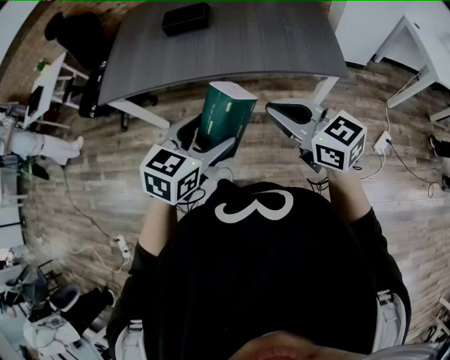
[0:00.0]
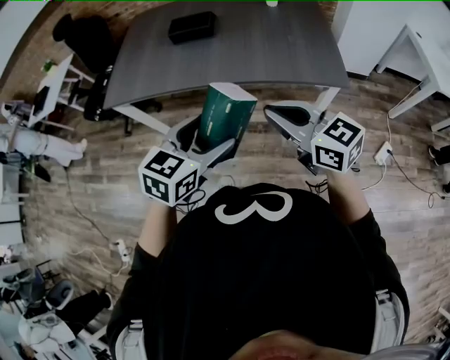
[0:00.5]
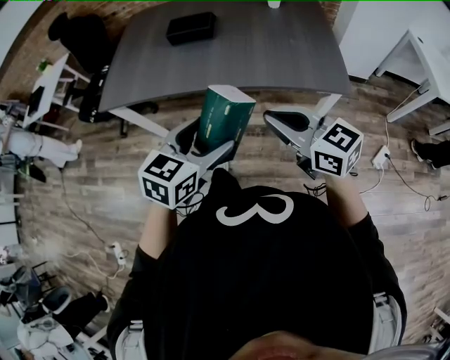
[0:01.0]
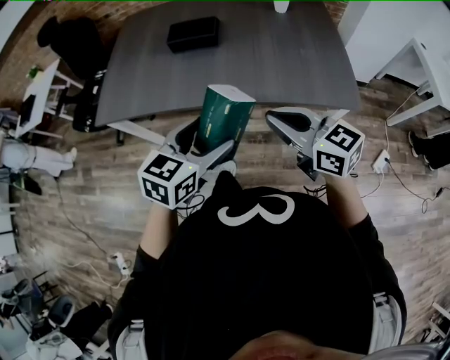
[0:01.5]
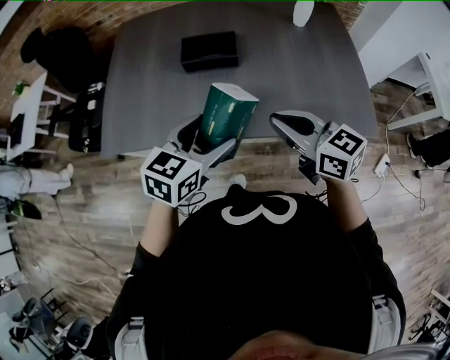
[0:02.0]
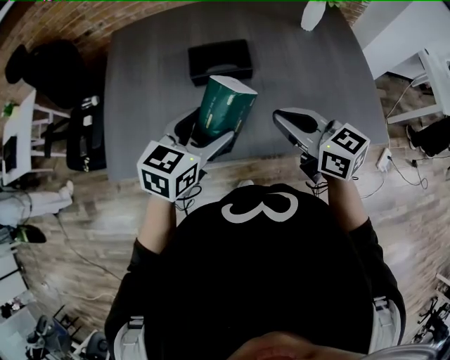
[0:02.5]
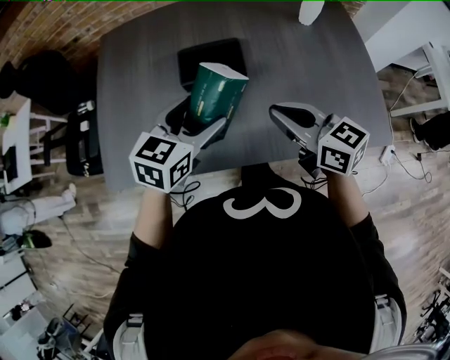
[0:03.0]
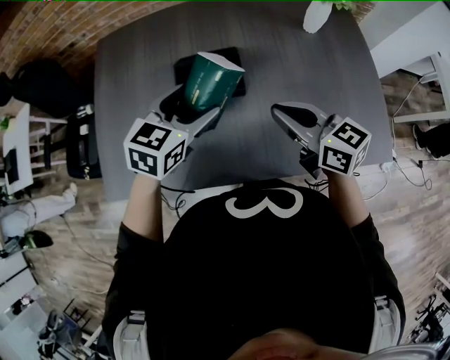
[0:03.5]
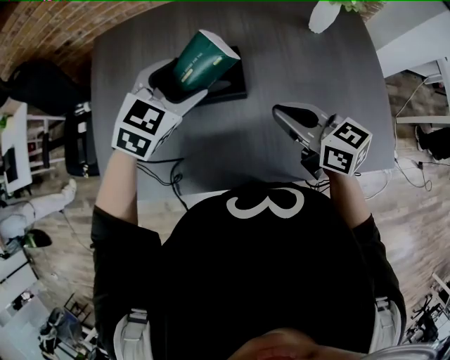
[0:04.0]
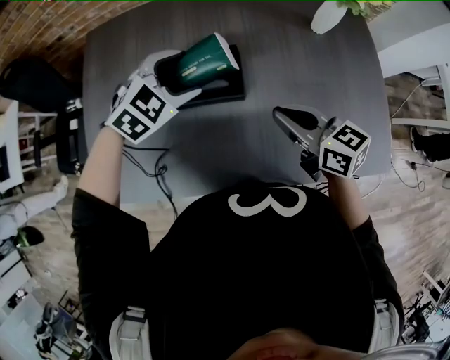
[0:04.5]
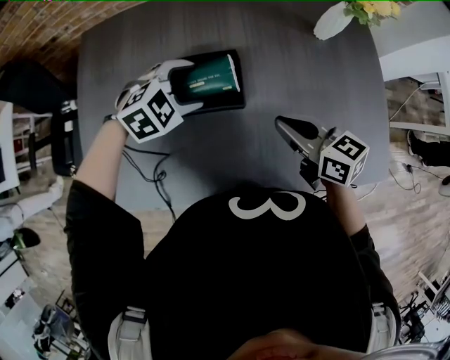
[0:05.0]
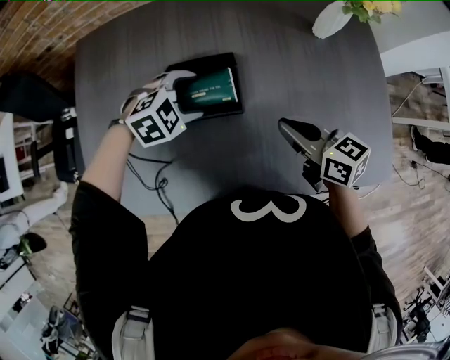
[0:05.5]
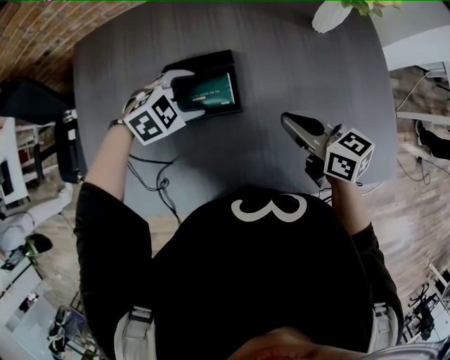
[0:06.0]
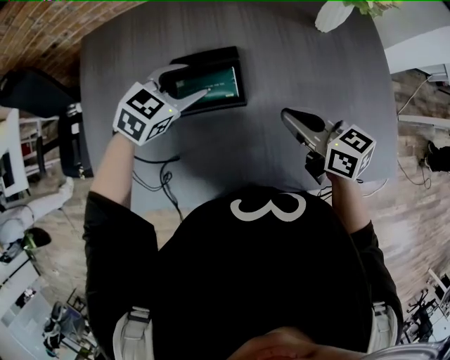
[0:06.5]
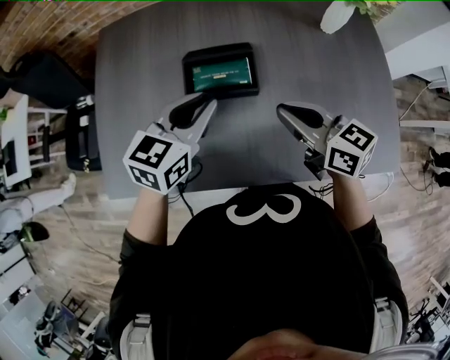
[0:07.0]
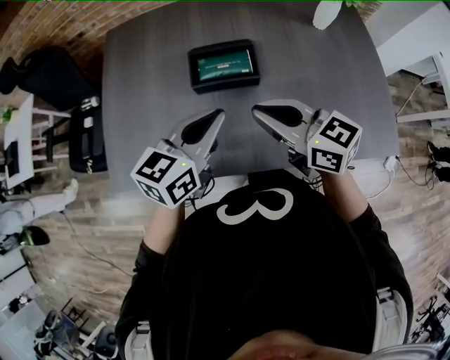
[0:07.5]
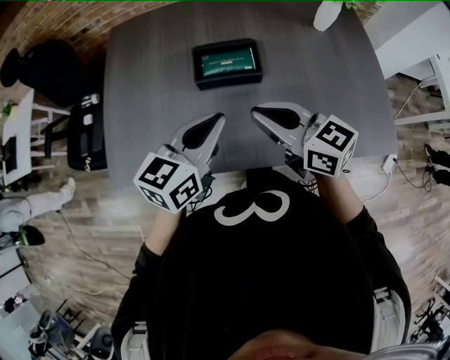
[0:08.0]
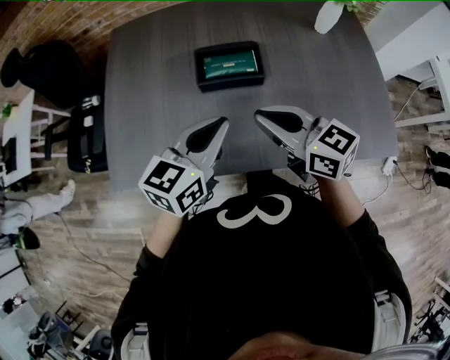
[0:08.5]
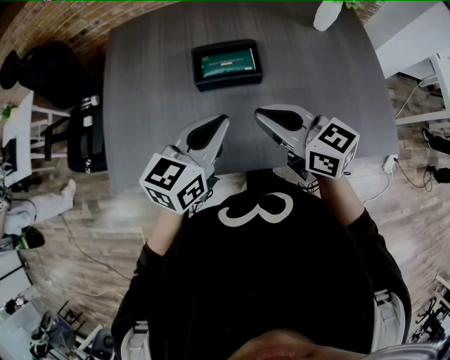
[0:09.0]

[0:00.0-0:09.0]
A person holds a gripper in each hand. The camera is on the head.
0:00.0 to 0:02.0: The two grippers go roughly 30 cm forward.
0:02.0 to 0:04.5: The right gripper travels forward by approximately 25 cm. The left gripper shifts some 35 cm forward, and rotates around the line of its fingers by about 40 degrees, clockwise from behind.
0:04.5 to 0:07.0: The left gripper travels backward by approximately 10 cm, goes downward and returns, approximately 10 cm each way, twists some 40 degrees counterclockwise, seen from behind, and closes up.
0:07.0 to 0:09.0: The left gripper travels backward by roughly 10 cm, while the right gripper shifts some 10 cm to the left and backward.

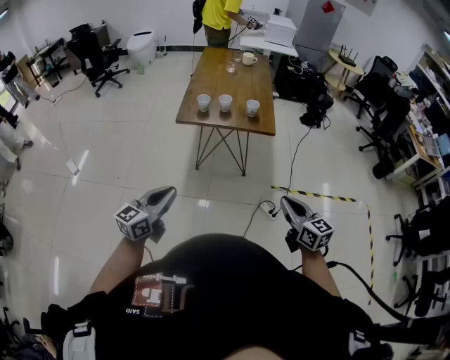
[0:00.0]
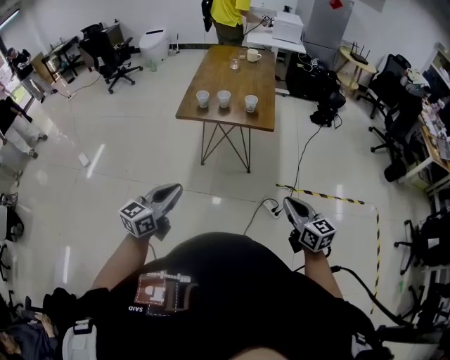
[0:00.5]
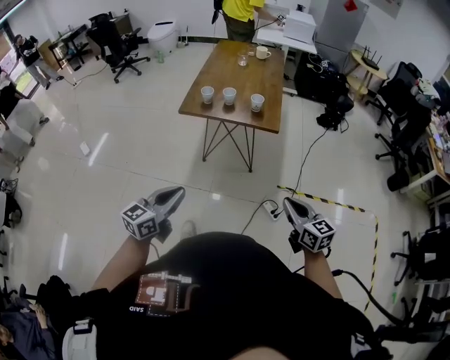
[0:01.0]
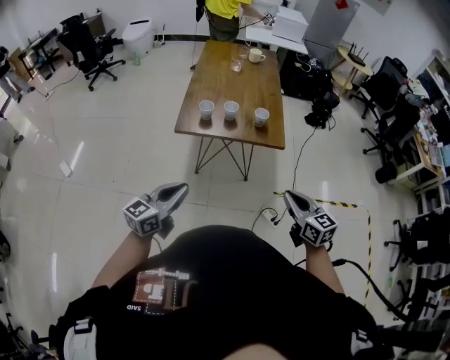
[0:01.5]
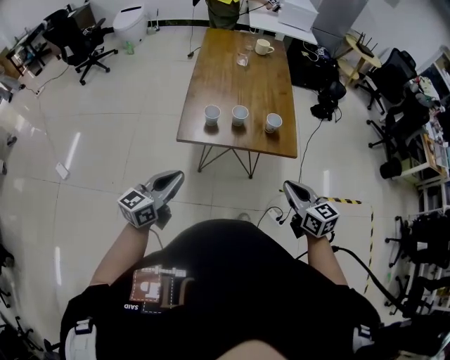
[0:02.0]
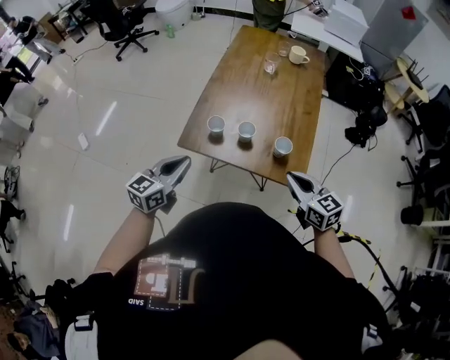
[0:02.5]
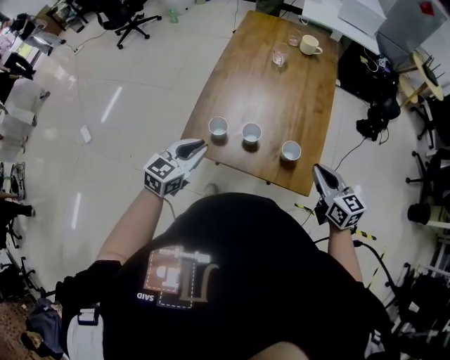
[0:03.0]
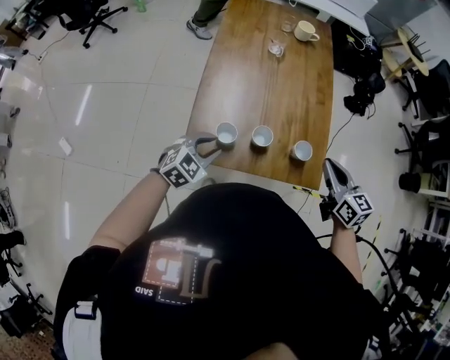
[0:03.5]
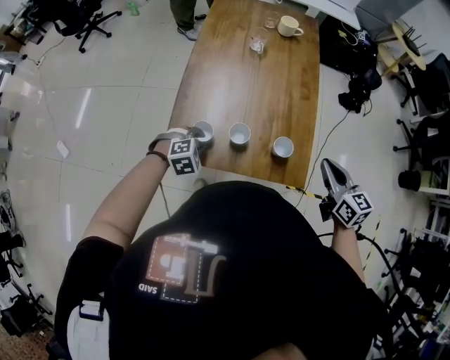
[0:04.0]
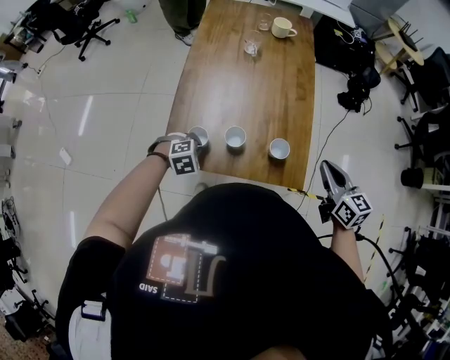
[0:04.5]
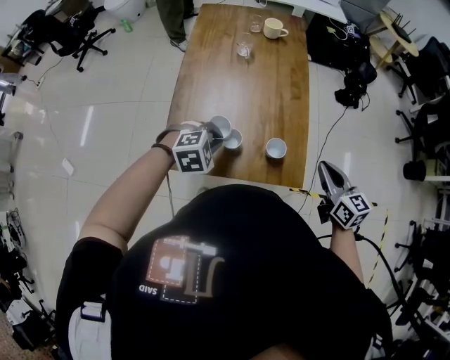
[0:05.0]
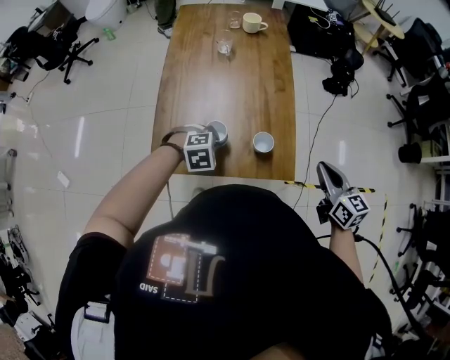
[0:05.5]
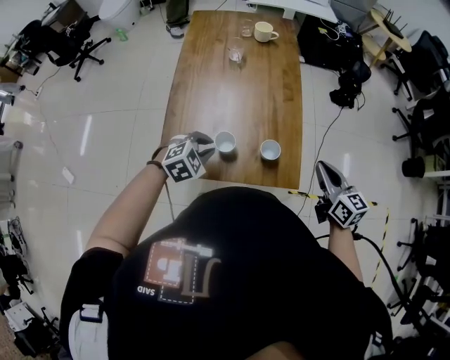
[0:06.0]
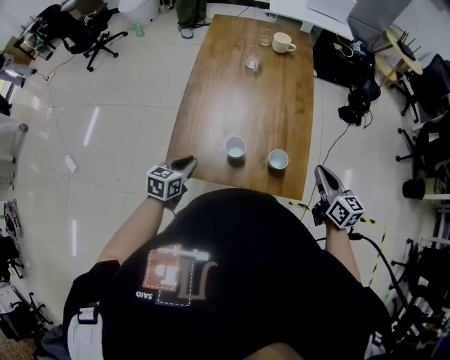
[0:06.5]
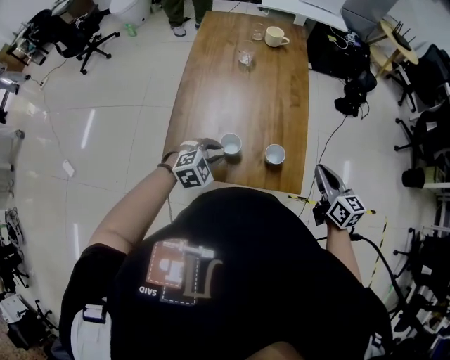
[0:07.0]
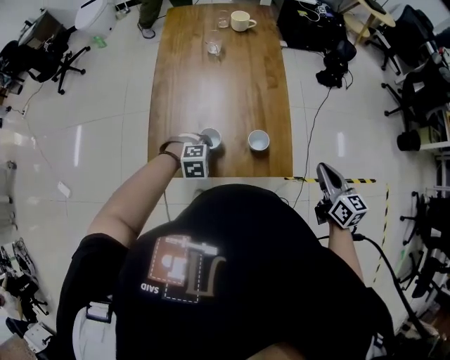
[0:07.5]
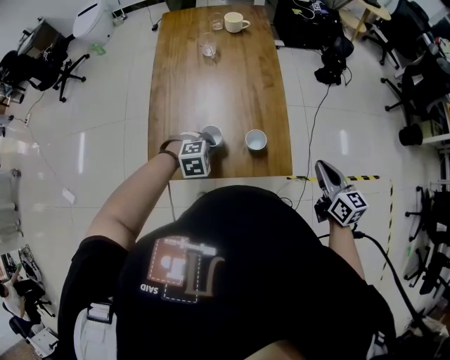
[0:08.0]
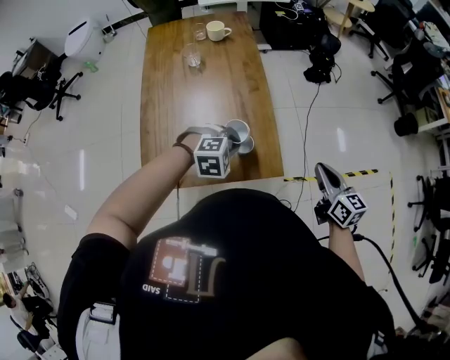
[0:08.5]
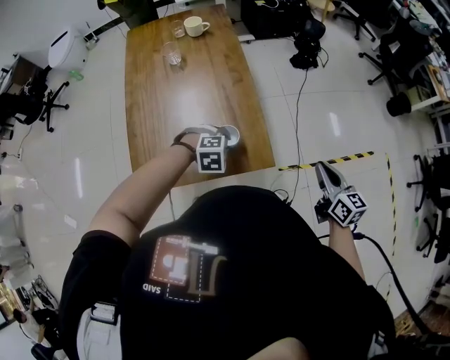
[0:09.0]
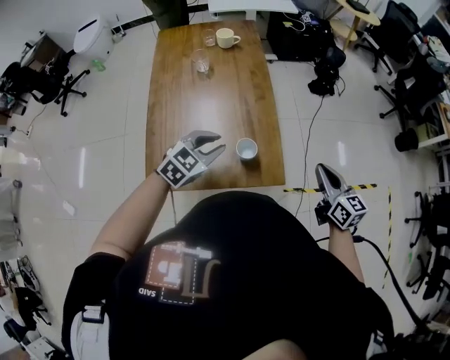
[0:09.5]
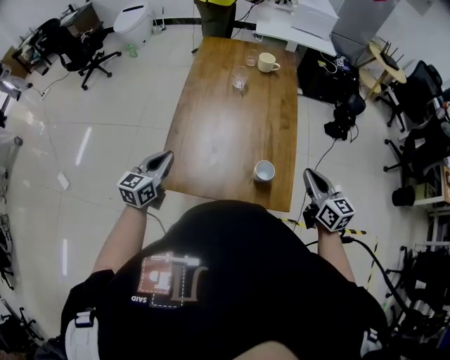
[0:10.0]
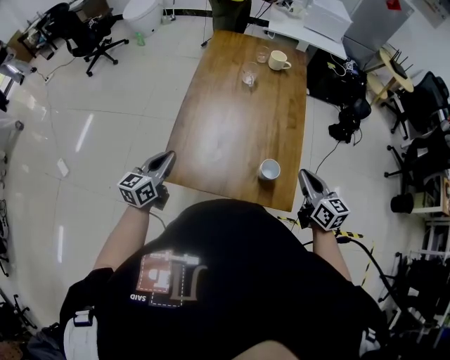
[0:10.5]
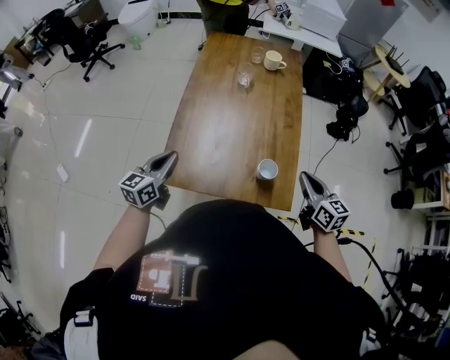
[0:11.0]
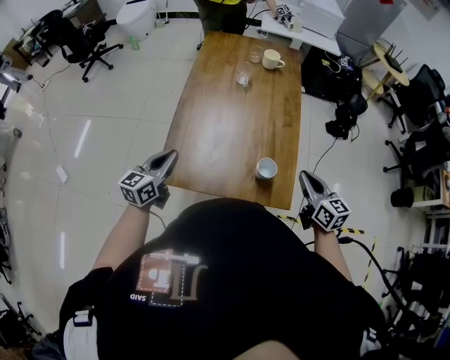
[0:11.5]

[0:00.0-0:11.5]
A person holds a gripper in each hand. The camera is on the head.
0:00.0 to 0:02.0: The grippers both shift forward by roughly 30 cm.
0:02.0 to 0:04.0: The left gripper shifts approximately 35 cm forward and downward, tips its fingers downward by roughly 60 degrees, and opens its fingers. Meanwhile the right gripper shifts approximately 30 cm forward and to the right.
0:04.0 to 0:06.0: The left gripper goes up and down, about 10 cm each way, reversing 2 times.
0:06.0 to 0:07.5: The right gripper shifts by some 5 cm. The left gripper is displaced downward by some 10 cm, reaches about 10 cm to the left, then returns, and swivels approximately 30 degrees.
0:07.5 to 0:09.5: The right gripper reaches some 10 cm to the right, then returns; the left gripper moves up and down over some 20 cm, changing direction 2 times, and tips its fingers upward by some 40 degrees.
0:09.5 to 0:11.5: The right gripper shifts by approximately 15 cm; the left gripper changes place by approximately 25 cm, swivels some 60 degrees, and closes its fingers.

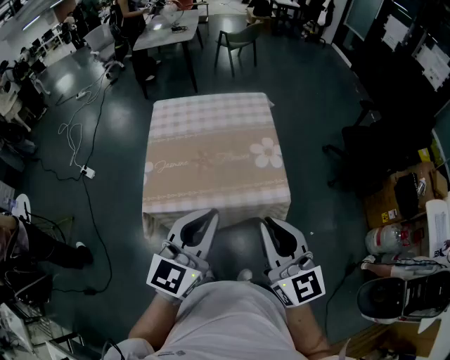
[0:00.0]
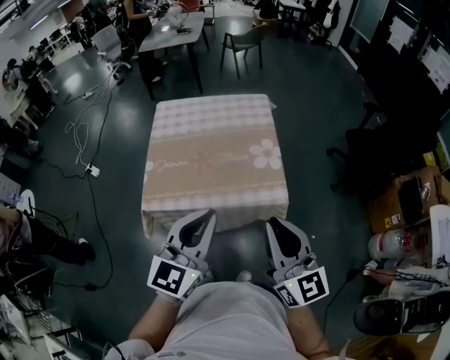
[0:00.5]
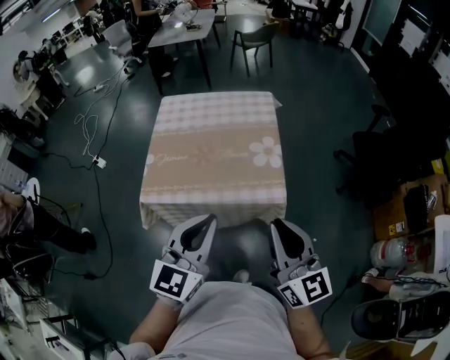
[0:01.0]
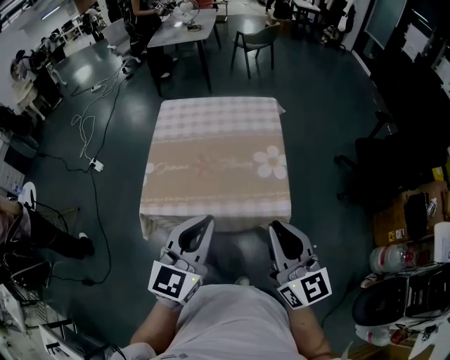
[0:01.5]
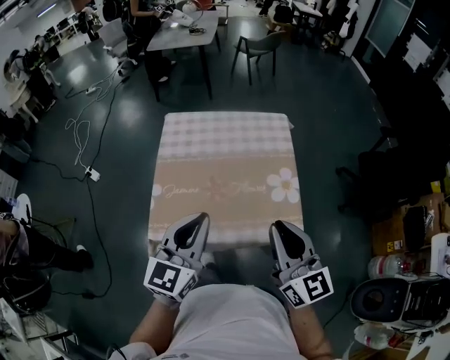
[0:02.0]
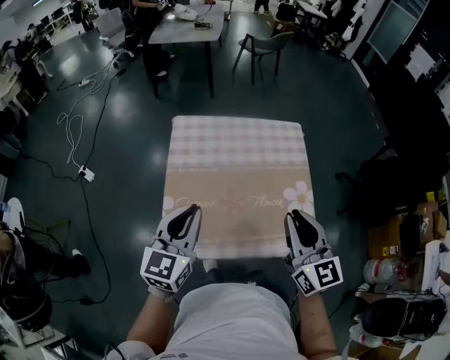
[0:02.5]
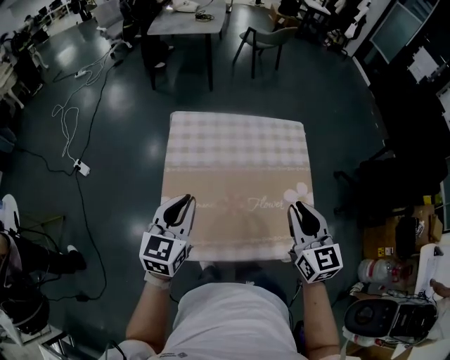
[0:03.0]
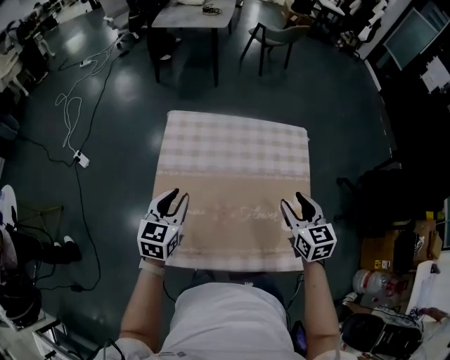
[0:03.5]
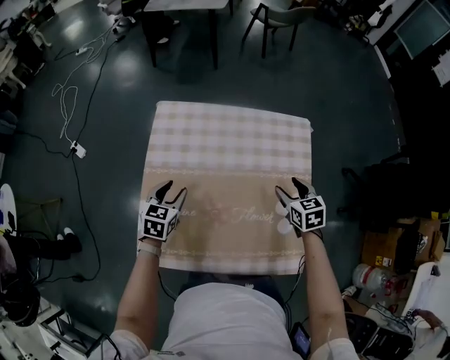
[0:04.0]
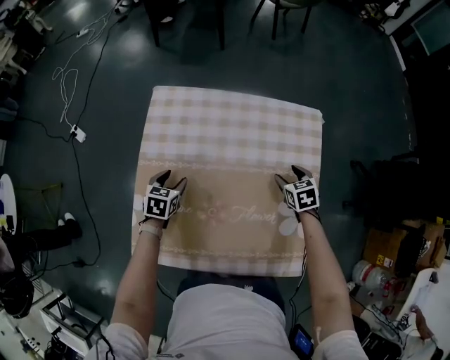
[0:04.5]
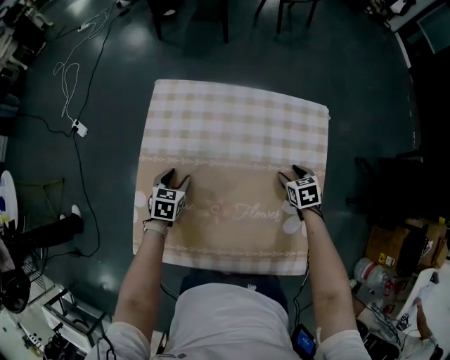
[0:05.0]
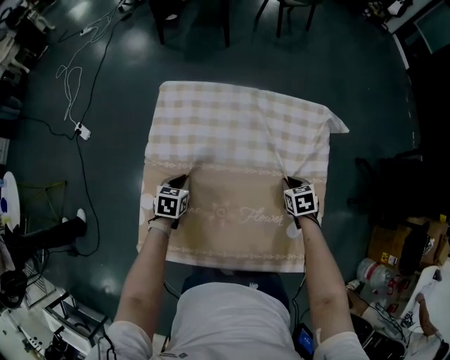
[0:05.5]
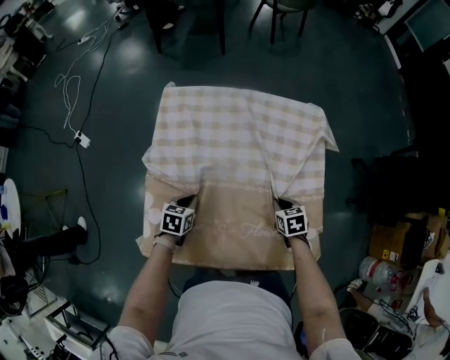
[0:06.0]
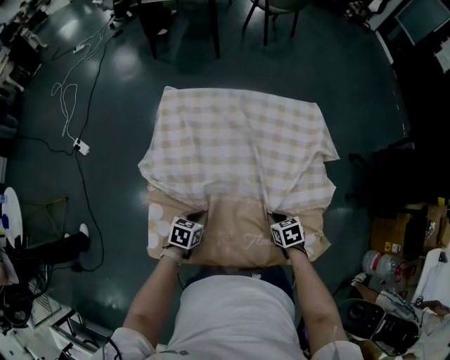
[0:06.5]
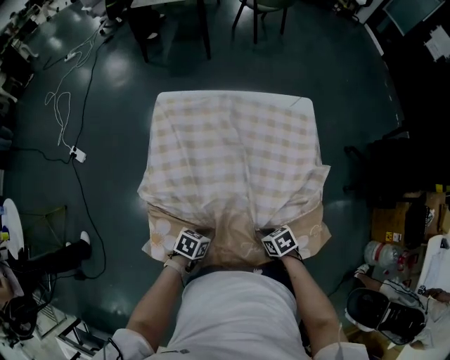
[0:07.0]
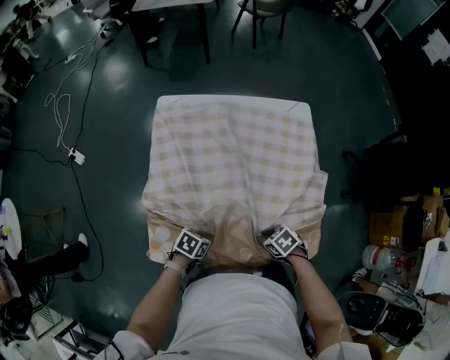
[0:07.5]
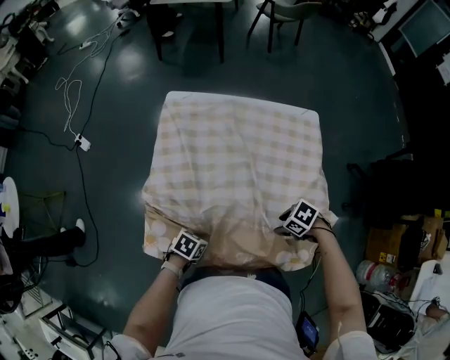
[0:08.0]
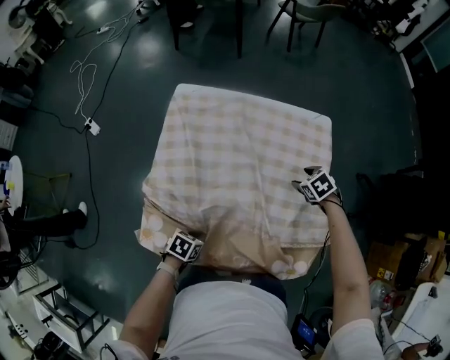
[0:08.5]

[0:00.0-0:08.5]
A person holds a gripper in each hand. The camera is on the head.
0:00.0 to 0:02.0: The left gripper goes approximately 15 cm forward and to the left, while the right gripper moves forward, about 15 cm.
0:02.0 to 0:04.0: The left gripper travels downward, forward and to the left by approximately 40 cm, tips its fingers downward by some 40 degrees, and opens. Meanwhile the right gripper travels forward and downward by some 40 cm, angles its fingers downward, by some 50 degrees, and opens its fingers.
0:04.0 to 0:06.5: The right gripper heads backward, downward and to the left, covering some 20 cm, turns by roughly 20 degrees, and closes its fingers, while the left gripper shifts roughly 15 cm downward and backward, rotates some 20 degrees, and closes its fingers.
0:06.5 to 0:08.5: The left gripper changes place by some 10 cm. Meanwhile the right gripper changes place by roughly 20 cm, swivels some 30 degrees, and opens up.
